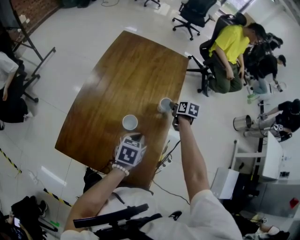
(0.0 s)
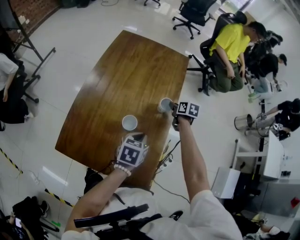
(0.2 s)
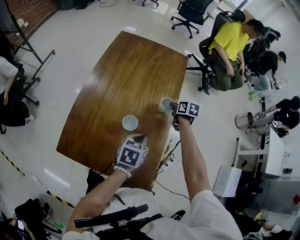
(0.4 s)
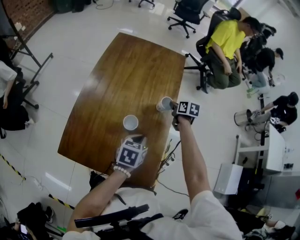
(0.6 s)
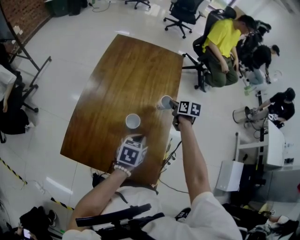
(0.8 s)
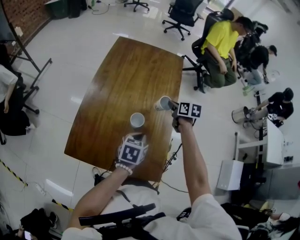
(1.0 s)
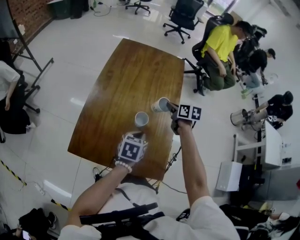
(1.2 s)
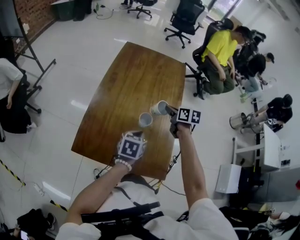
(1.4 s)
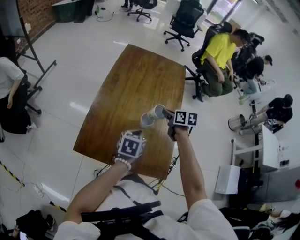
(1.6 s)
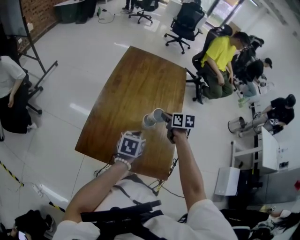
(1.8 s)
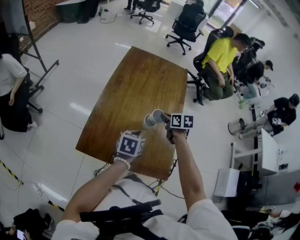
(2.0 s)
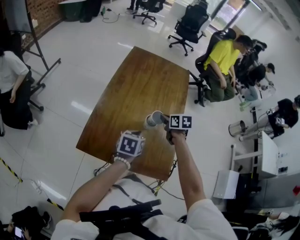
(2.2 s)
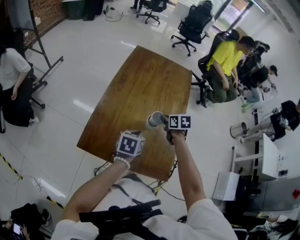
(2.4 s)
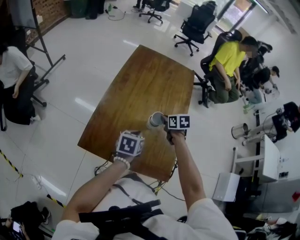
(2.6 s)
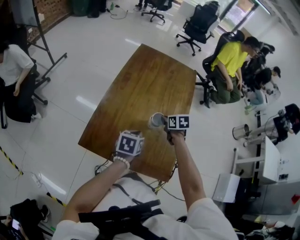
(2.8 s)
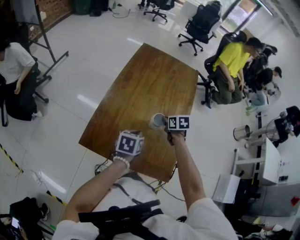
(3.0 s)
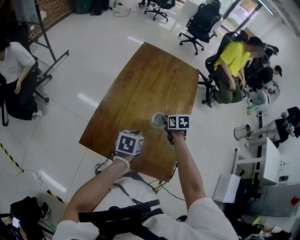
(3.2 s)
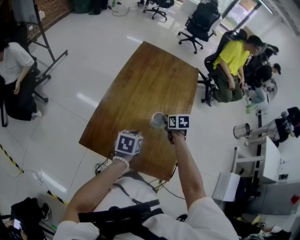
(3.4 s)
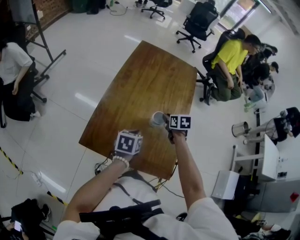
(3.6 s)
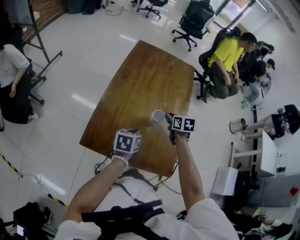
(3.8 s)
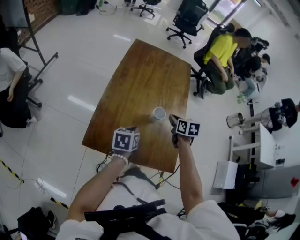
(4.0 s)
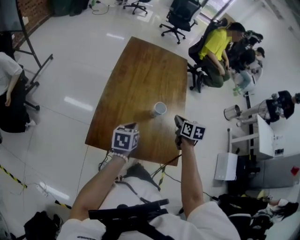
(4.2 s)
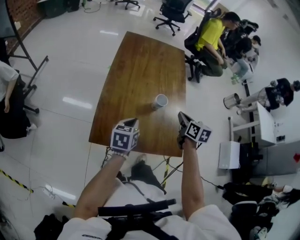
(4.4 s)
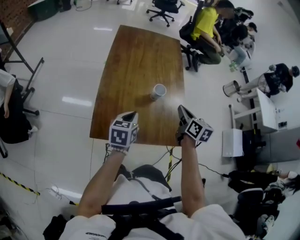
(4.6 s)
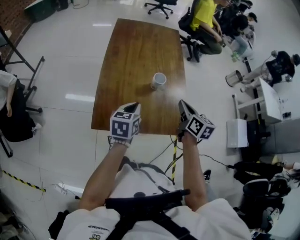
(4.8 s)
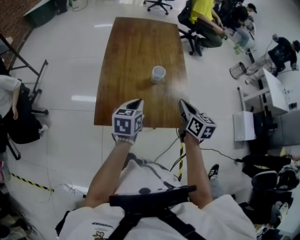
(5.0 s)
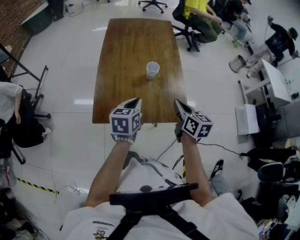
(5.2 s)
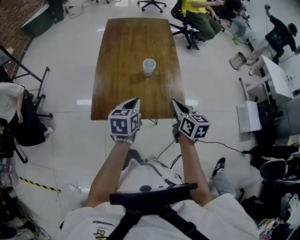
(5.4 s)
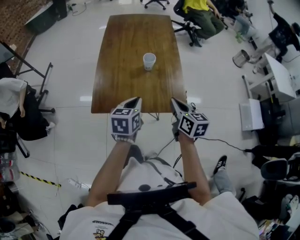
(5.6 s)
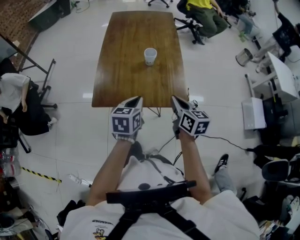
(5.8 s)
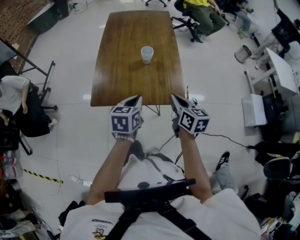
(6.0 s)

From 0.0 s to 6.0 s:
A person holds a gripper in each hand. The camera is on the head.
From 0.0 s to 1.6 s: The left gripper heads to the left and backward, covering about 10 cm; the right gripper shifts roughly 25 cm to the left, backward and upward, and closes up.
From 1.6 s to 3.0 s: The left gripper ends up approximately 5 cm from where it was. The right gripper travels downward by some 10 cm.
From 3.0 s to 4.4 s: The right gripper shifts about 20 cm backward and upward, swivels roughly 30 degrees, and opens, then closes once more. Meanwhile the left gripper goes some 5 cm to the left.
From 4.4 s to 6.0 s: The right gripper moves backward, some 20 cm. The left gripper moves backward and to the right, approximately 20 cm.

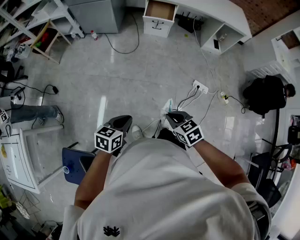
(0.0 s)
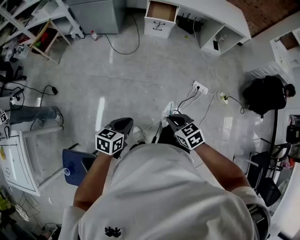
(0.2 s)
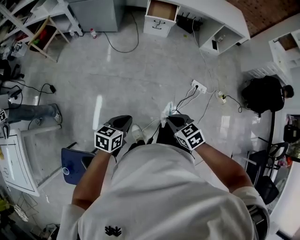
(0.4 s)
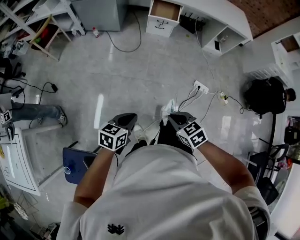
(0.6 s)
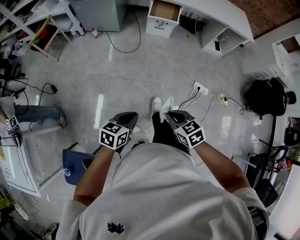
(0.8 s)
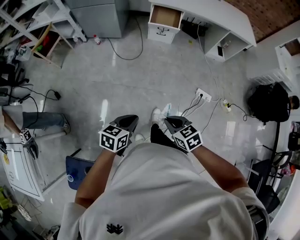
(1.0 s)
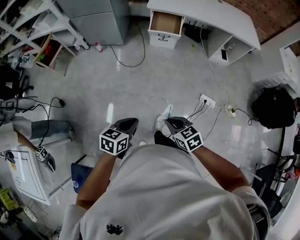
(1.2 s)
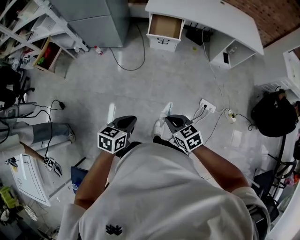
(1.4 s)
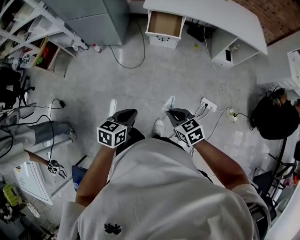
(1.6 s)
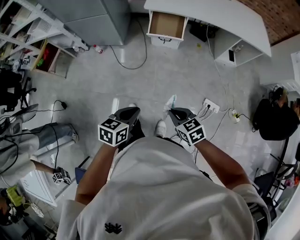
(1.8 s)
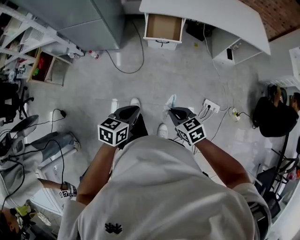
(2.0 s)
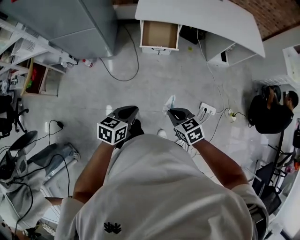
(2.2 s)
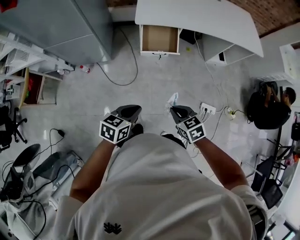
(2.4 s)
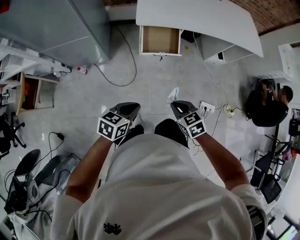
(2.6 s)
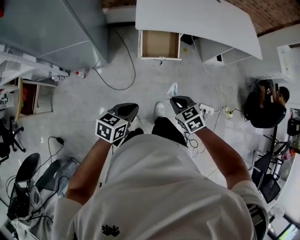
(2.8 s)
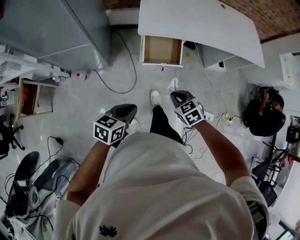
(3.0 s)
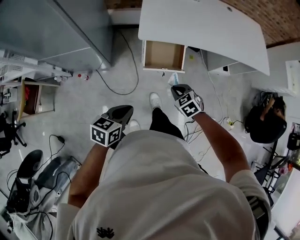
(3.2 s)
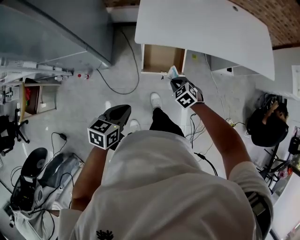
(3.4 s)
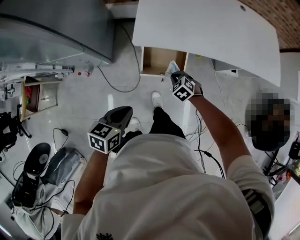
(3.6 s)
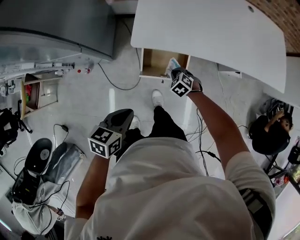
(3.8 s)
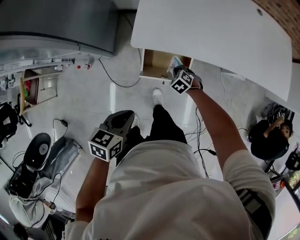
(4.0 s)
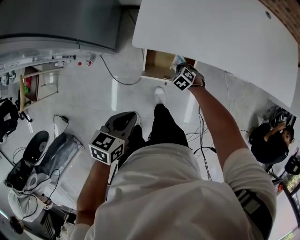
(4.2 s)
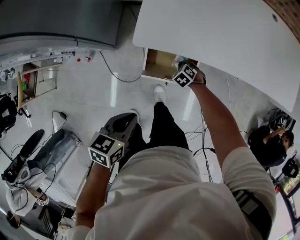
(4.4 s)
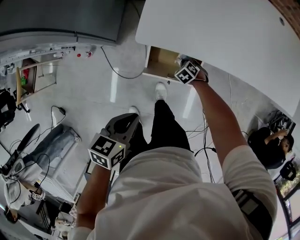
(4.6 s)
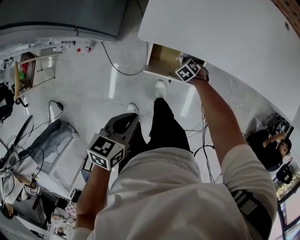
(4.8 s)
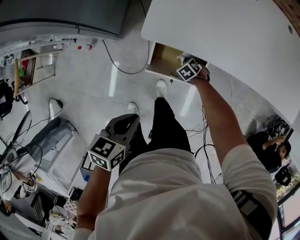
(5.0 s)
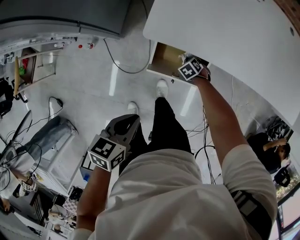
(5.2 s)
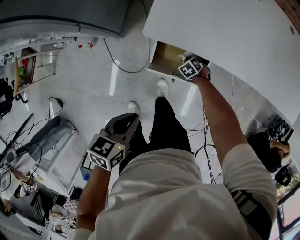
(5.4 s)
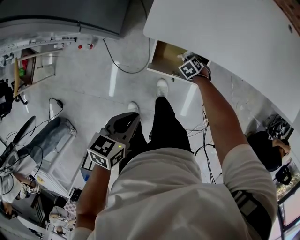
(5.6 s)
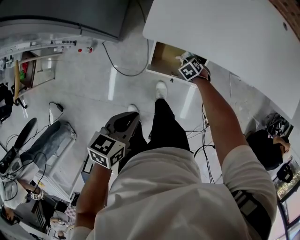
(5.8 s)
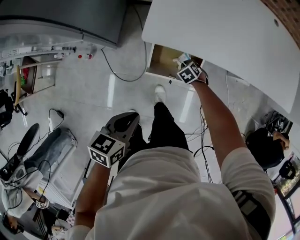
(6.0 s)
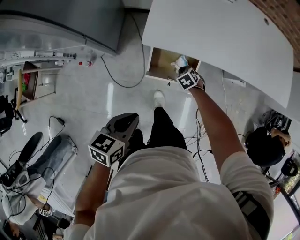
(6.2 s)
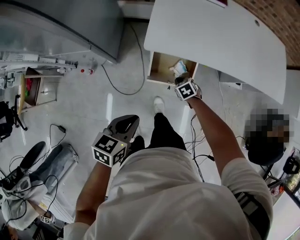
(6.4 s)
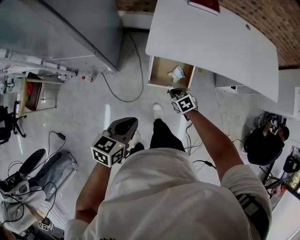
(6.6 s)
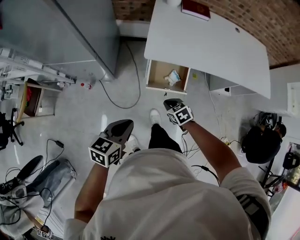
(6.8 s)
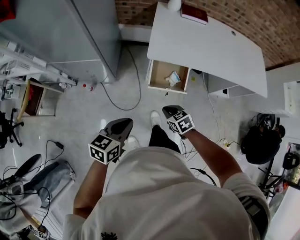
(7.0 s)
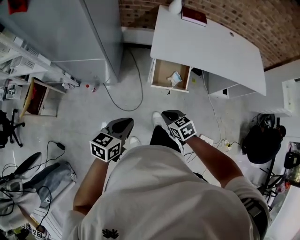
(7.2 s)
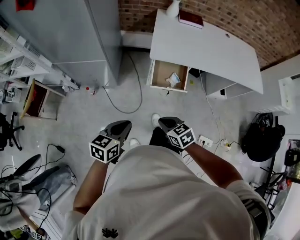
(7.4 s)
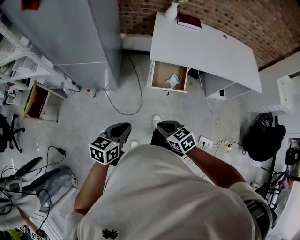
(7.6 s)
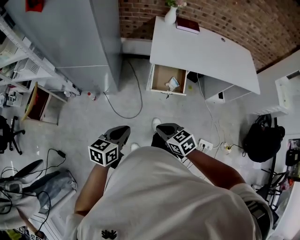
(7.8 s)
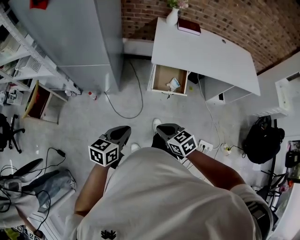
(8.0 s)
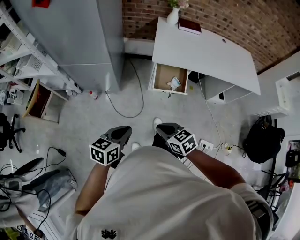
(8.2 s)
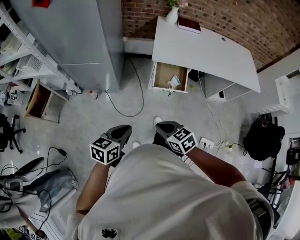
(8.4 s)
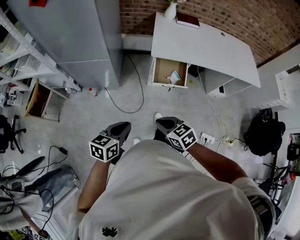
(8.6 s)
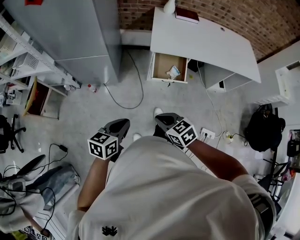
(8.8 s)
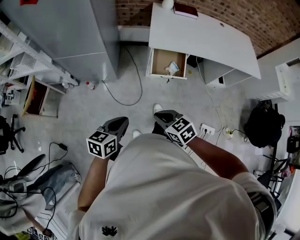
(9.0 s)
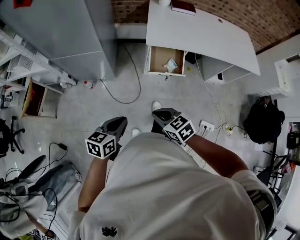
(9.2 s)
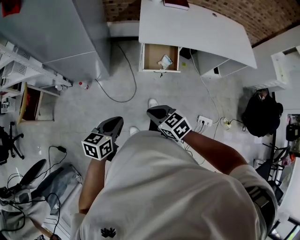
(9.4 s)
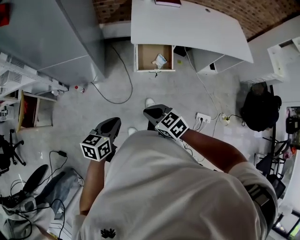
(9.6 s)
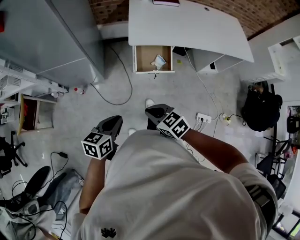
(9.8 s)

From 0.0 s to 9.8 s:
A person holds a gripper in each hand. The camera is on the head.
From 0.0 s to 1.4 s: Both grippers travel together forward, some 25 cm.
From 1.4 s to 2.8 s: Both grippers are carried forward, approximately 50 cm.
From 2.8 s to 4.2 s: The right gripper travels forward and downward by roughly 50 cm, and rotates about 30 degrees; the left gripper travels forward by some 25 cm, and changes its angle by some 20 degrees.
From 4.2 s to 5.6 s: The right gripper moves downward, some 10 cm.
From 5.6 s to 7.0 s: The right gripper changes place by approximately 40 cm, and turns by roughly 30 degrees. The left gripper changes place by approximately 20 cm, and swivels roughly 20 degrees.
From 7.0 s to 8.4 s: The right gripper shifts approximately 30 cm backward, upward and to the left. Meanwhile the left gripper moves backward and to the left, roughly 20 cm.
From 8.4 s to 9.8 s: The left gripper is displaced forward and to the right by some 10 cm. The right gripper shifts some 5 cm forward.

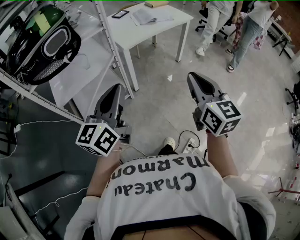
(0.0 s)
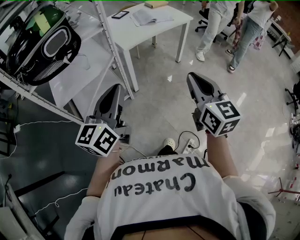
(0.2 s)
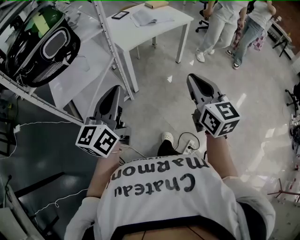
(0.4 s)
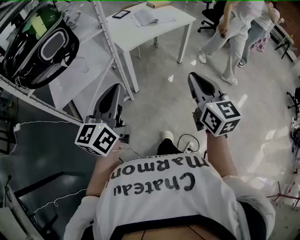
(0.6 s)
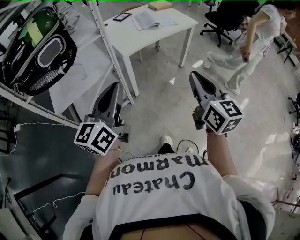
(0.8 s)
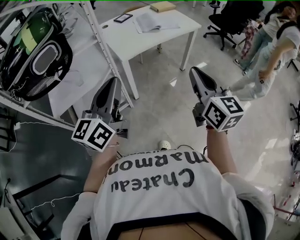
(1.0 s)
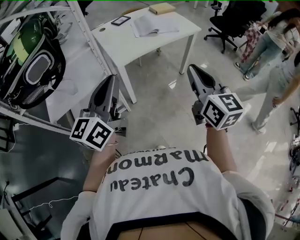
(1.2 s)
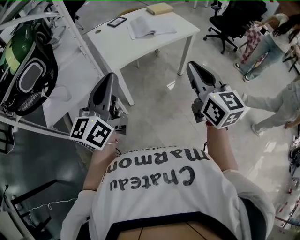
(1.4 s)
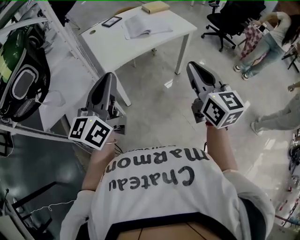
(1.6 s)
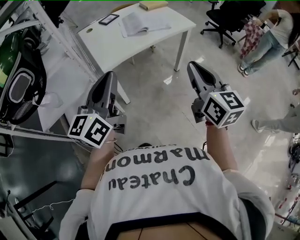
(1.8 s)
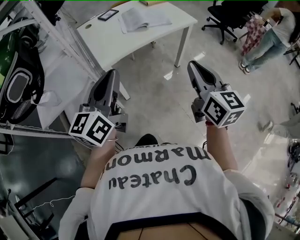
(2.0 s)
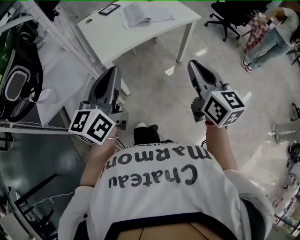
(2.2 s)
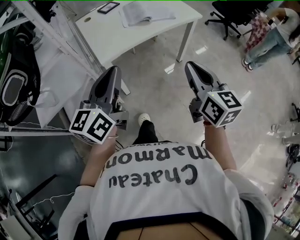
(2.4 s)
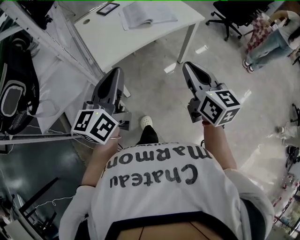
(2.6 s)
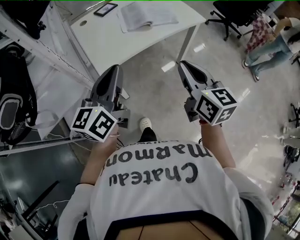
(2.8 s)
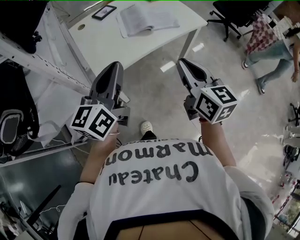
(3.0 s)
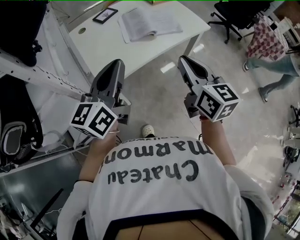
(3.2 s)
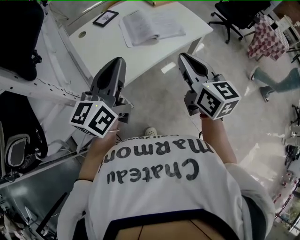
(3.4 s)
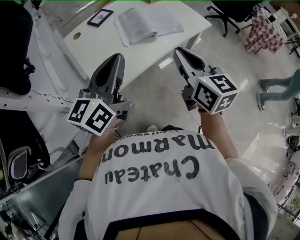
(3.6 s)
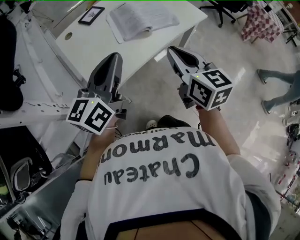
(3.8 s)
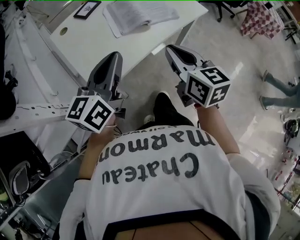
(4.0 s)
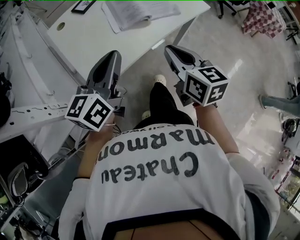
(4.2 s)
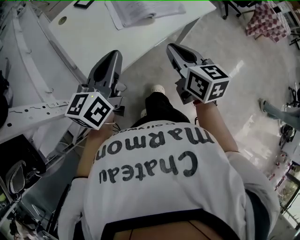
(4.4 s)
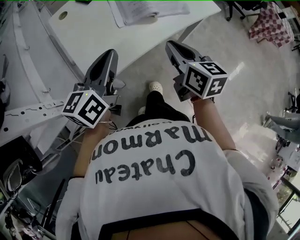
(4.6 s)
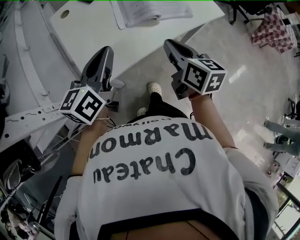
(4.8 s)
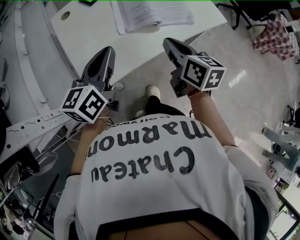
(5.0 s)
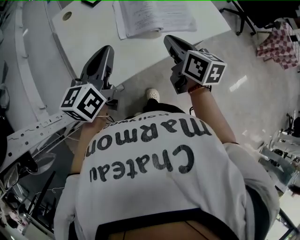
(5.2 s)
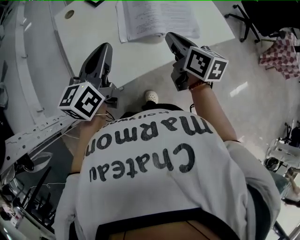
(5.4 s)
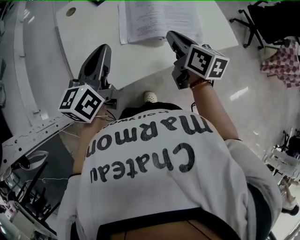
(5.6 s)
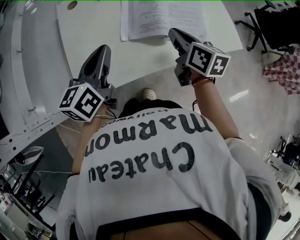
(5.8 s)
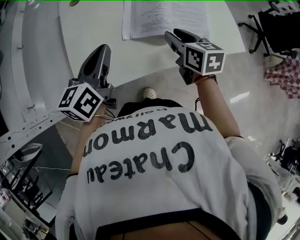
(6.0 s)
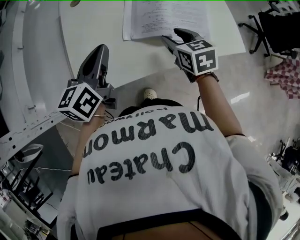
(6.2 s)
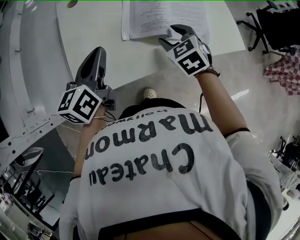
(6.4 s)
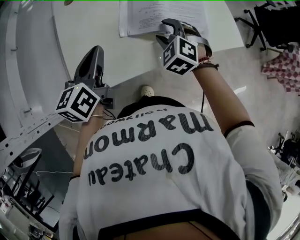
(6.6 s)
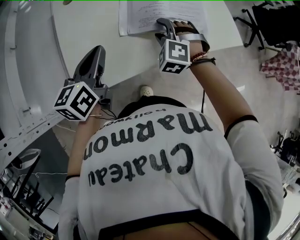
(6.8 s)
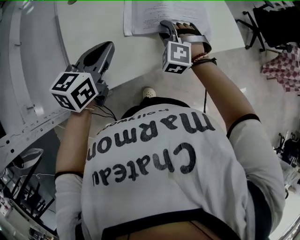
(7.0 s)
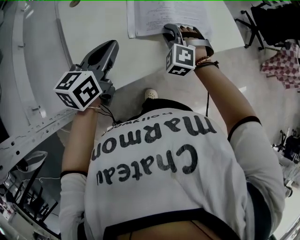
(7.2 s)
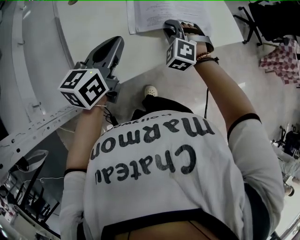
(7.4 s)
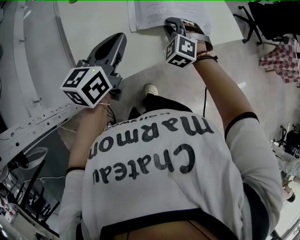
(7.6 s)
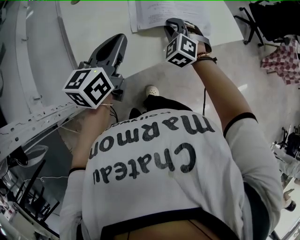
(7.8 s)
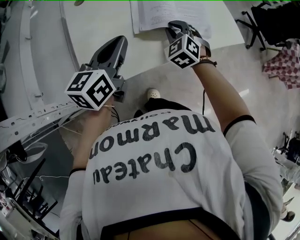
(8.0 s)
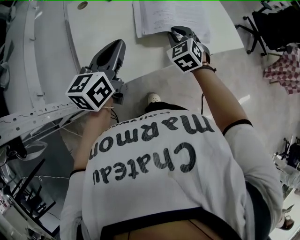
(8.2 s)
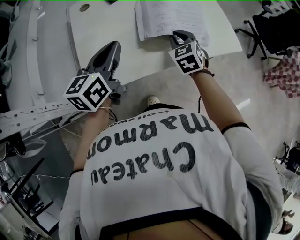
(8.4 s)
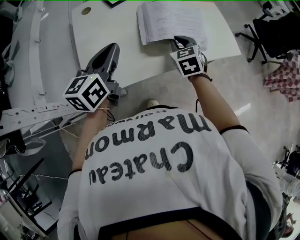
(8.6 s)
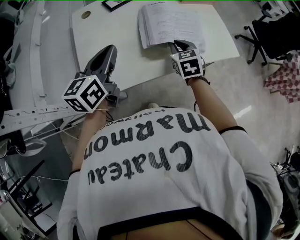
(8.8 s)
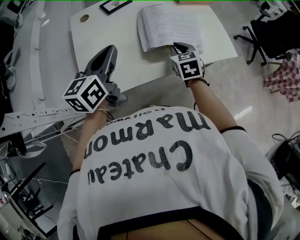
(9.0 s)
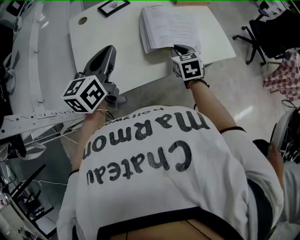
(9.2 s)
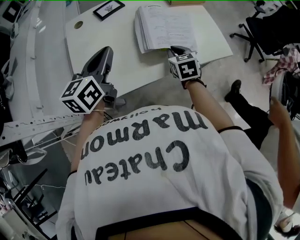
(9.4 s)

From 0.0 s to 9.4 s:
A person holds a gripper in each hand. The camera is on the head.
From 0.0 s to 1.6 s: The right gripper is displaced forward and to the right by approximately 30 cm. The left gripper heads forward, covering about 25 cm.
From 1.6 s to 3.2 s: Both grippers travel together forward, roughly 25 cm.
From 3.2 s to 4.8 s: The grippers both shift forward and downward by some 15 cm.
From 4.8 s to 6.2 s: The left gripper travels forward by some 10 cm. Meanwhile the right gripper moves forward and downward, about 20 cm, swivels about 40 degrees, and opens.
From 6.2 s to 7.8 s: The right gripper twists some 50 degrees counterclockwise, seen from behind, and closes up.
From 7.8 s to 9.4 s: The right gripper moves to the right, about 10 cm, and rotates around the line of its fingers by roughly 50 degrees, clockwise from behind.
